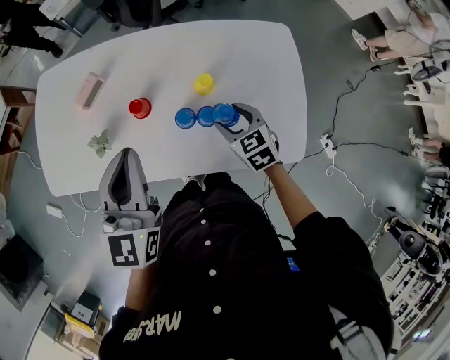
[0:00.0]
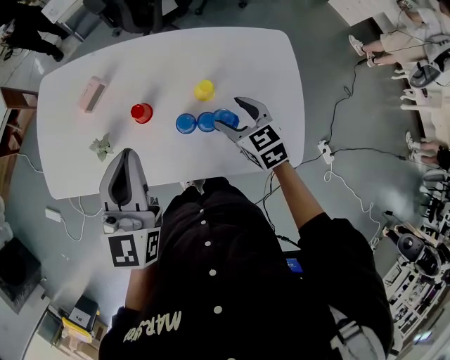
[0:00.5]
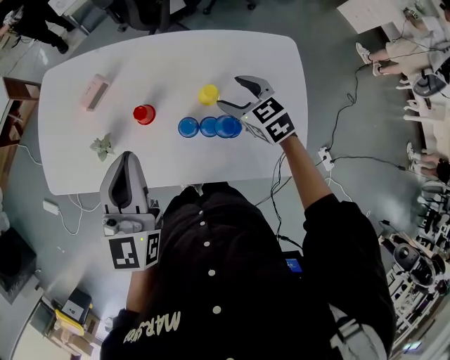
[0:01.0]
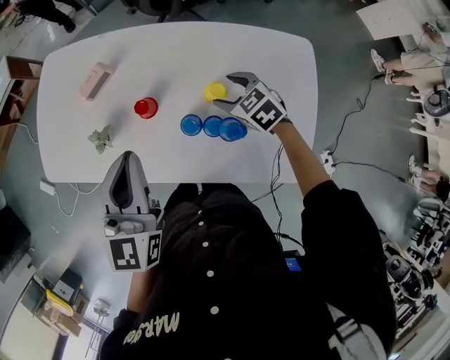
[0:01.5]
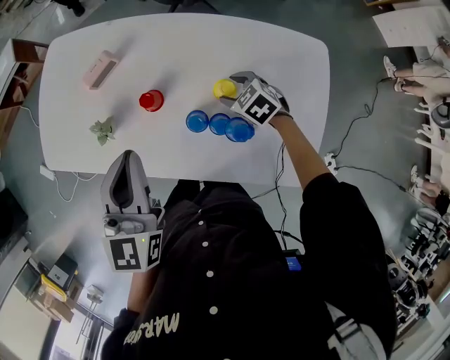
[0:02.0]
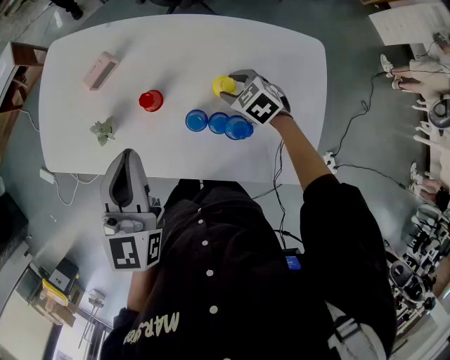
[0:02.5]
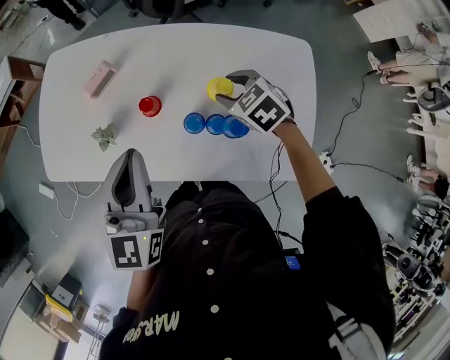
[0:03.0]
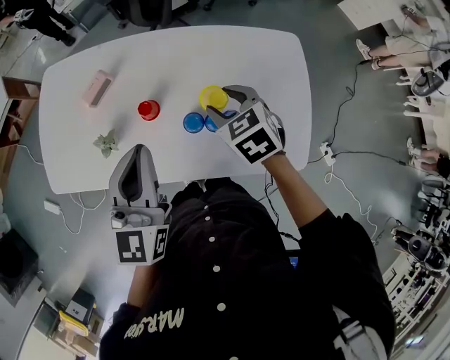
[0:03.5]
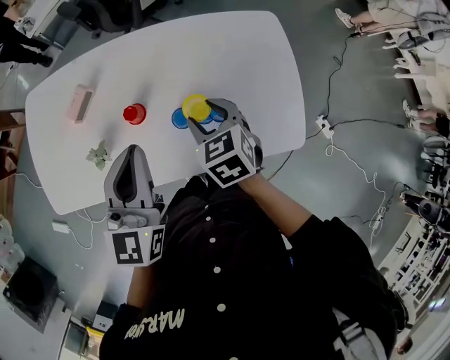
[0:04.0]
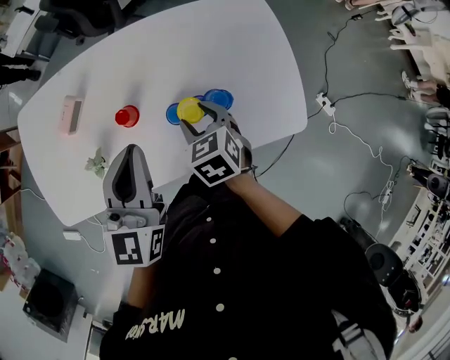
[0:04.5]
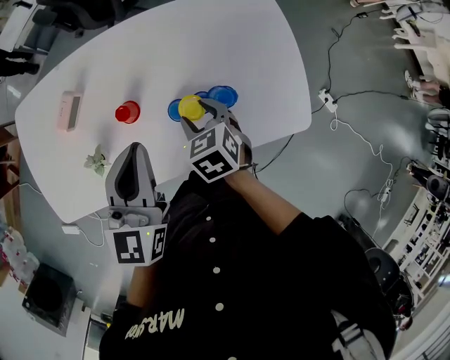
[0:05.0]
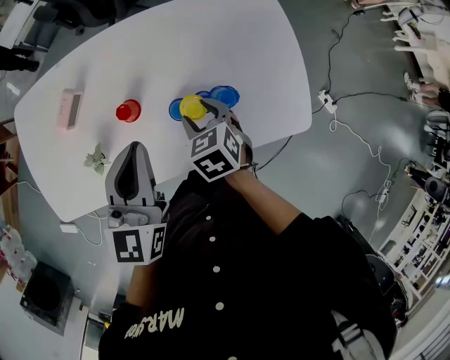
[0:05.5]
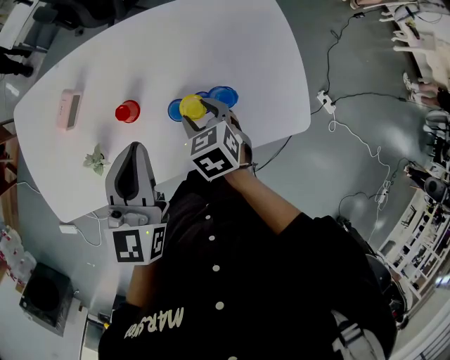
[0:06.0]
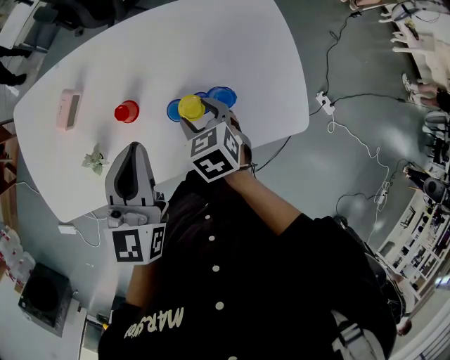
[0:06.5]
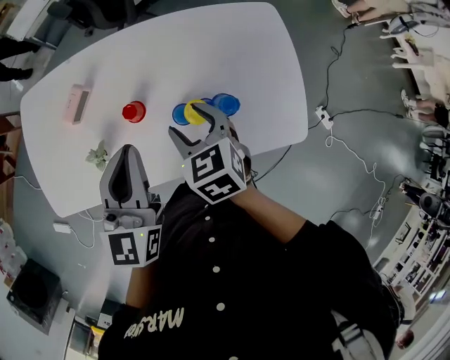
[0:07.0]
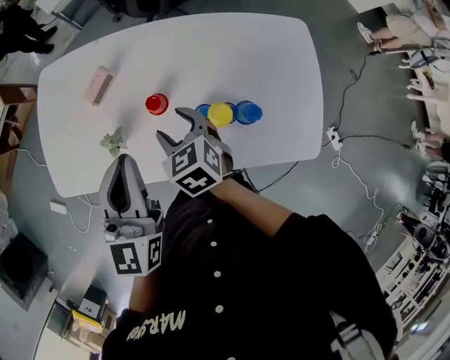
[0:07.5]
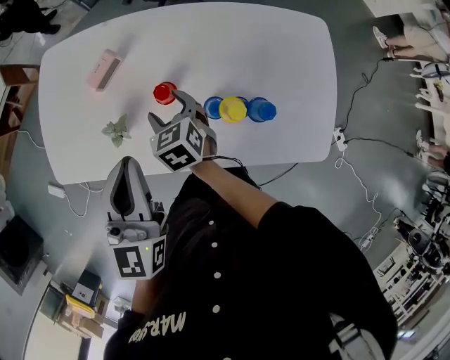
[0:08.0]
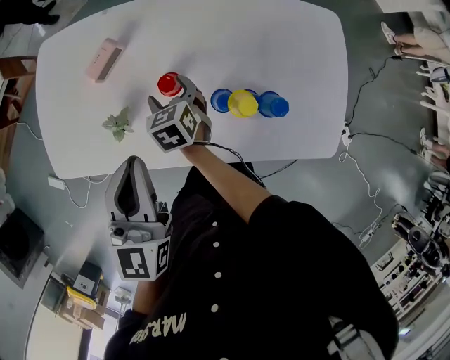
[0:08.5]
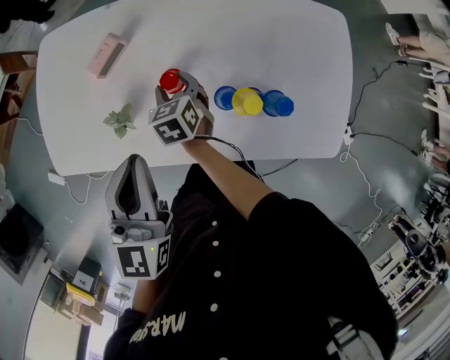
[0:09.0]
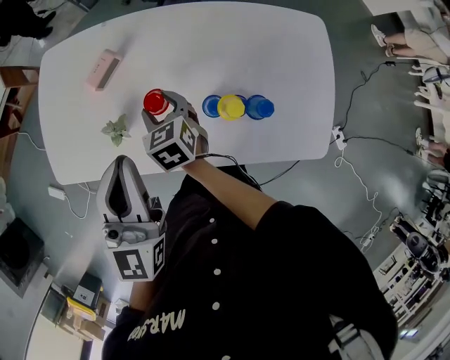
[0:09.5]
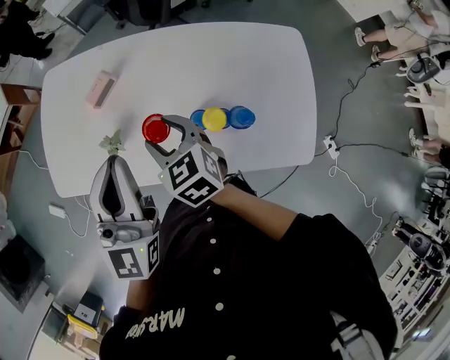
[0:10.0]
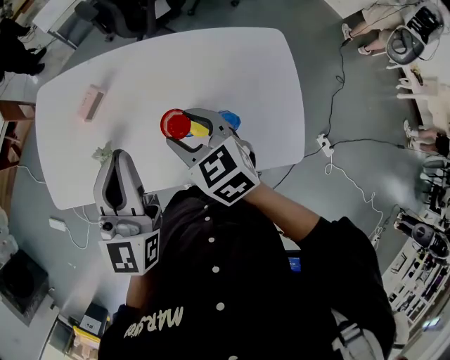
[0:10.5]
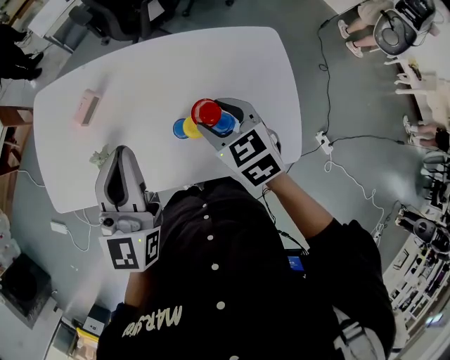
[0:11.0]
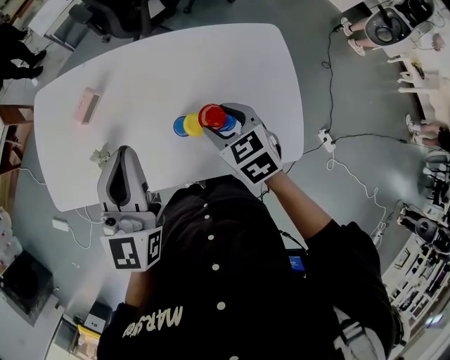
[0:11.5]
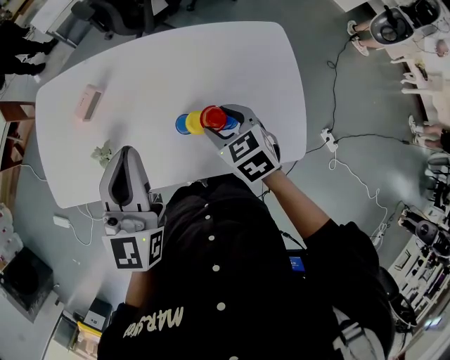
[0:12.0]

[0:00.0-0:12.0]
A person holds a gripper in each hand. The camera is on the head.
0:00.0 to 0:02.0: The right gripper shifts some 15 cm forward and downward, and rotates roughly 30 degrees.
0:02.0 to 0:04.0: The right gripper goes about 15 cm upward, and changes its angle by roughly 40 degrees; the left gripper rotates roughly 20 degrees.
0:04.0 to 0:06.0: The right gripper shifts some 5 cm downward.
0:06.0 to 0:08.0: The left gripper is displaced to the left by some 10 cm, while the right gripper moves to the left, approximately 20 cm.
0:08.0 to 0:10.0: The left gripper heads upward, covering approximately 5 cm, while the right gripper shifts about 15 cm upward and backward.
0:10.0 to 0:12.0: The right gripper shifts approximately 20 cm to the right. Meanwhile the left gripper heads to the right, covering roughly 5 cm.

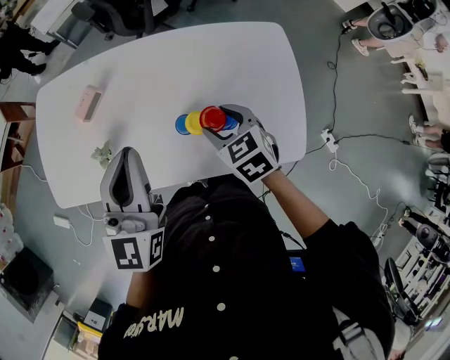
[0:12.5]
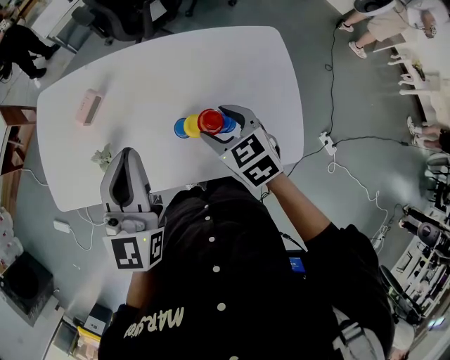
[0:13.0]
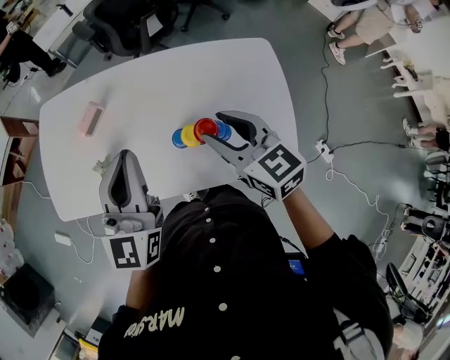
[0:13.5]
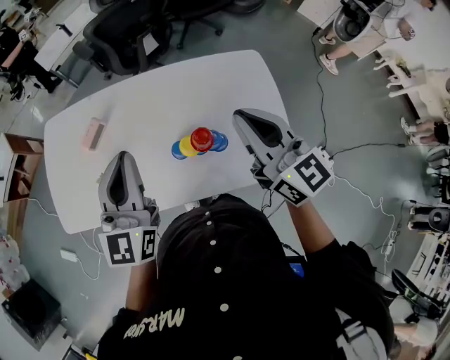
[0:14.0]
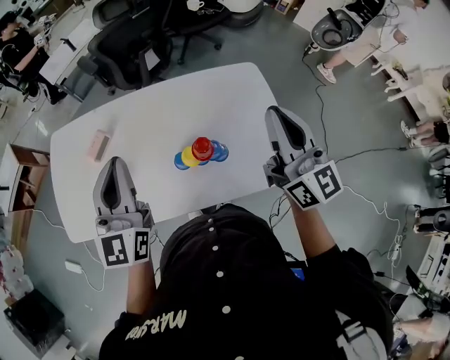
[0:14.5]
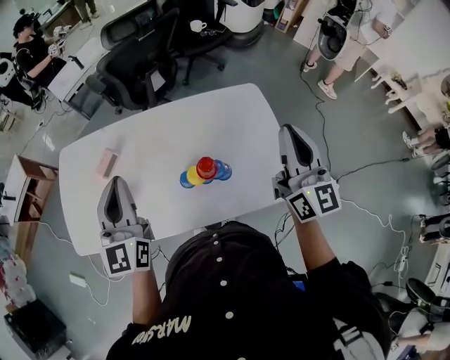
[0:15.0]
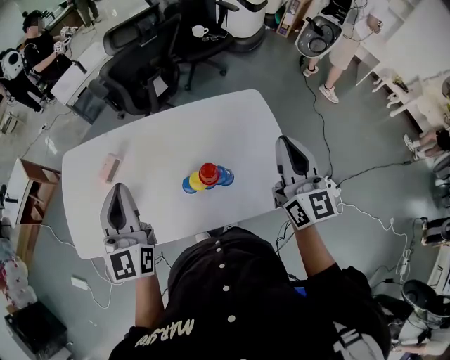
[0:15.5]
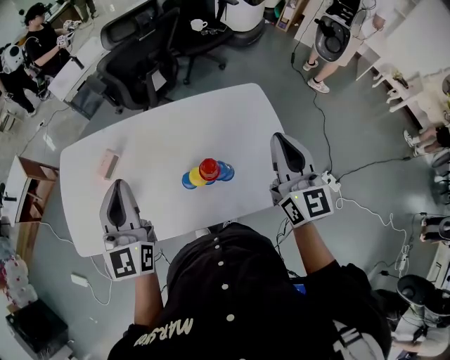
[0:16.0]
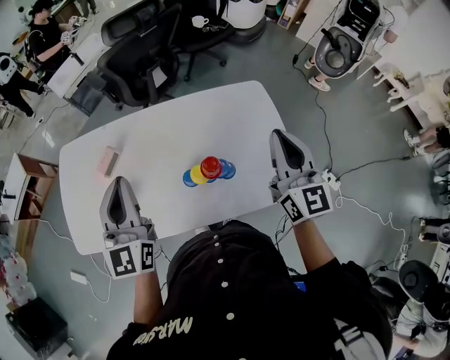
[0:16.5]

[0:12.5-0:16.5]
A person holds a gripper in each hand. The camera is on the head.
0:12.5 to 0:14.5: The right gripper goes some 30 cm upward and to the right, angles its fingers upward, by roughly 60 degrees, and closes up.
0:14.5 to 0:16.5: The grippers move only a little.

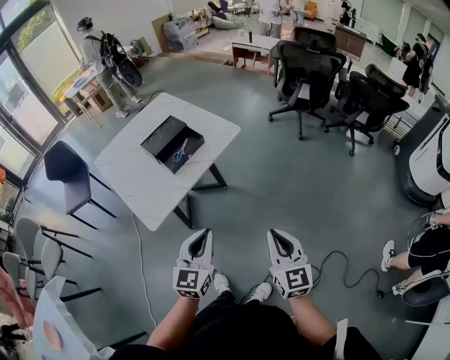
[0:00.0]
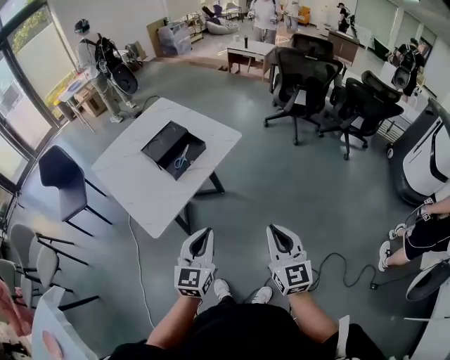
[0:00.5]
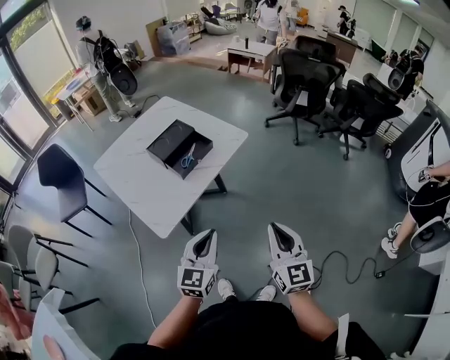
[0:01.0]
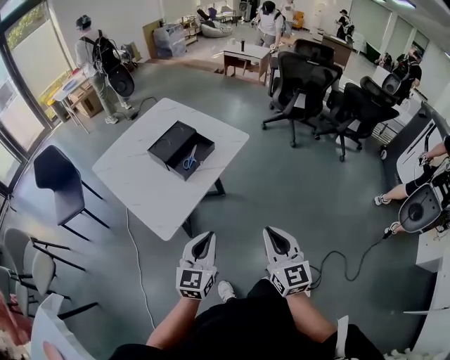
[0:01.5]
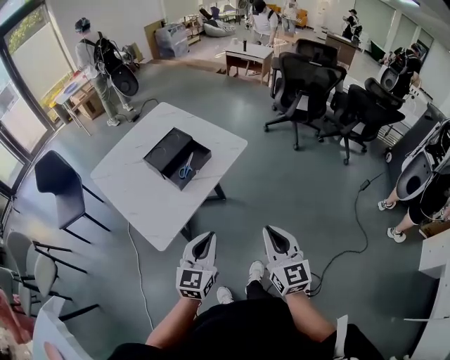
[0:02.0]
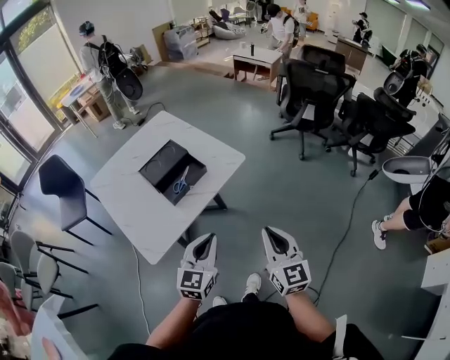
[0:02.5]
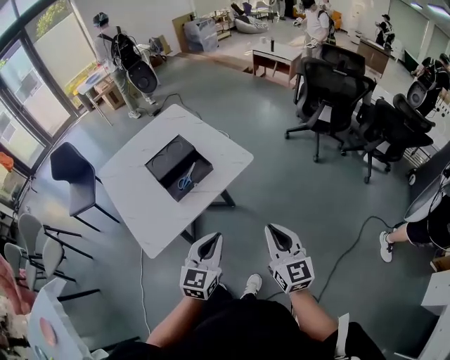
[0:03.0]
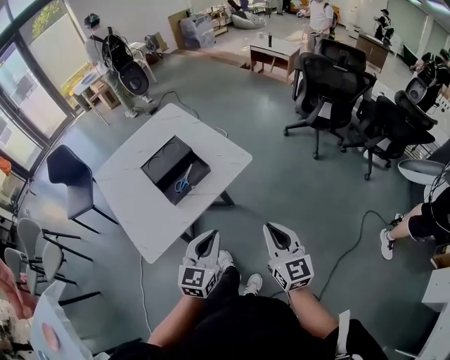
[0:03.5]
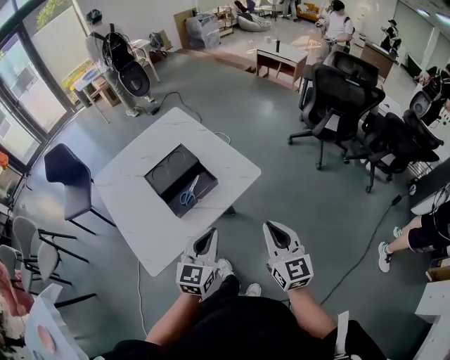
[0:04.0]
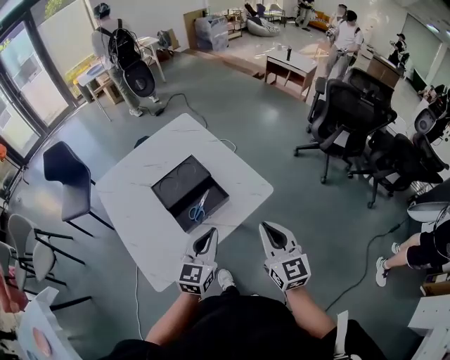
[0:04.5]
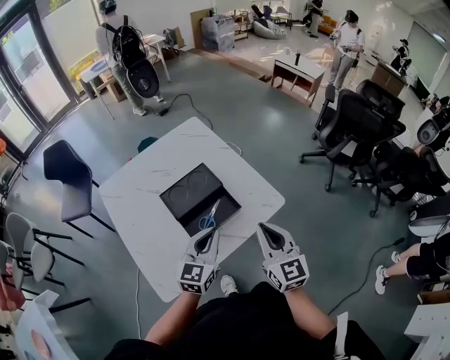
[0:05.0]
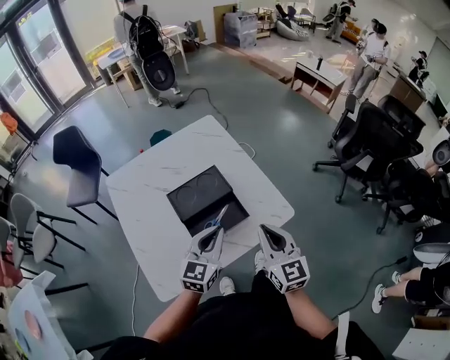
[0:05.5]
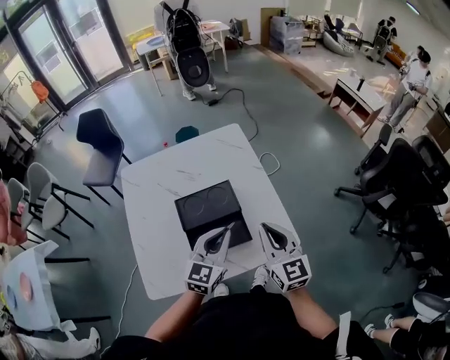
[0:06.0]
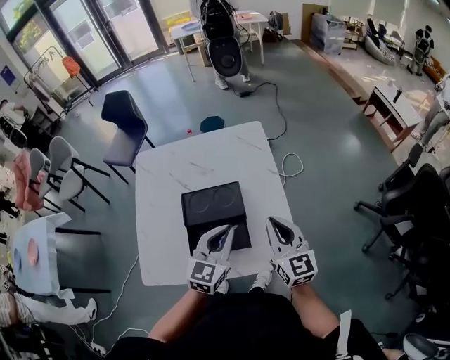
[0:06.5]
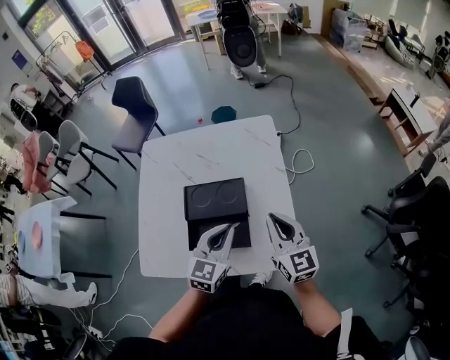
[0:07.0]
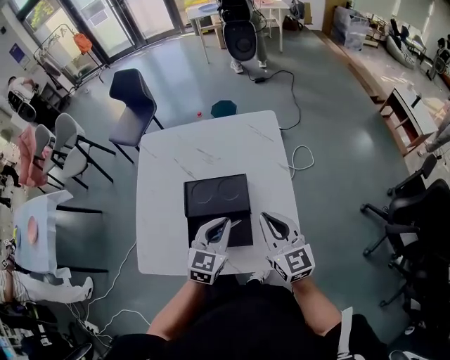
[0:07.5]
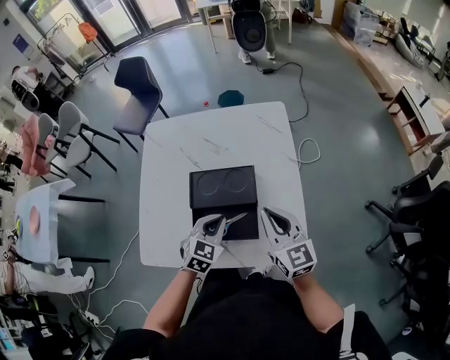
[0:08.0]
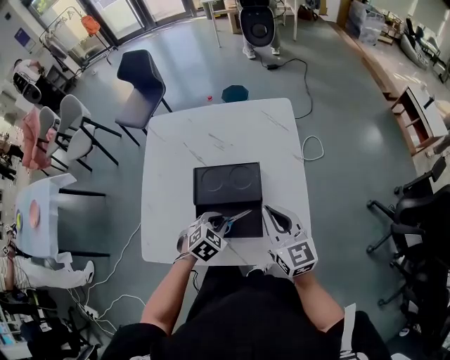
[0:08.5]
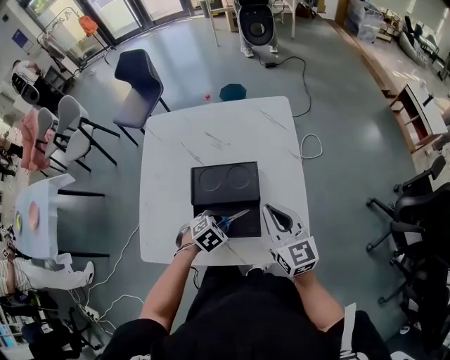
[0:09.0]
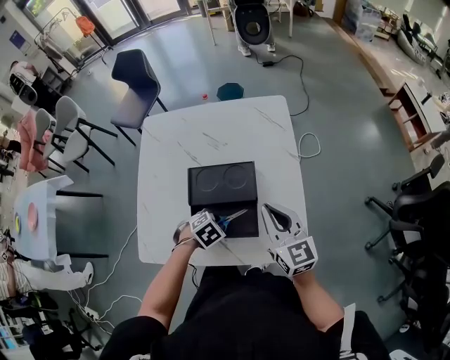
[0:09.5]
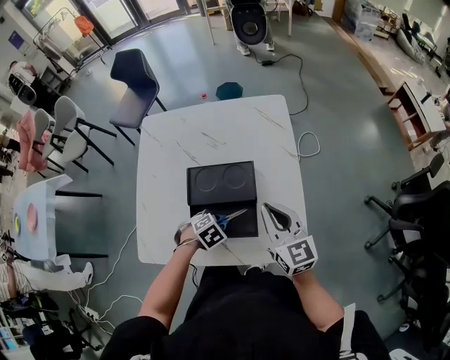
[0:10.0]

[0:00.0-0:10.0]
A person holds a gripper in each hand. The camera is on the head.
0:00.0 to 0:02.0: The two grippers go roughly 10 cm to the left and forward.
0:02.0 to 0:04.0: Both grippers move forward, roughly 20 cm.
0:04.0 to 0:06.0: The two grippers go approximately 25 cm forward. The right gripper swivels some 30 degrees.
0:06.0 to 0:08.0: The left gripper is displaced downward by approximately 10 cm, and turns by some 30 degrees. The right gripper heads forward, covering about 5 cm, and swivels about 20 degrees.
0:08.0 to 0:10.0: The left gripper is displaced downward by about 10 cm, angles its fingers downward, by about 40 degrees, and opens its fingers.

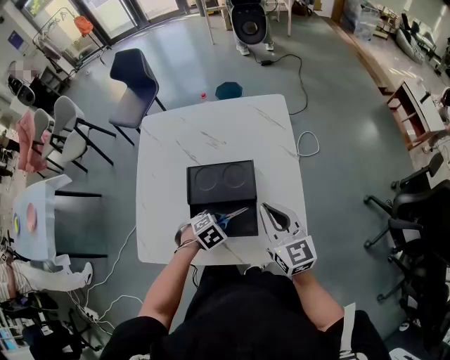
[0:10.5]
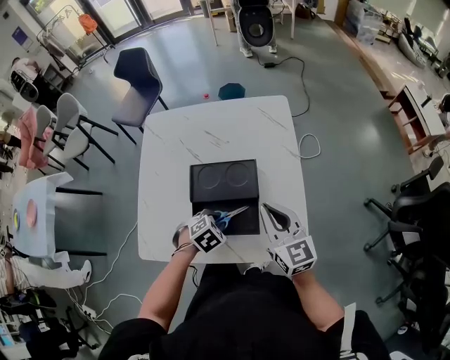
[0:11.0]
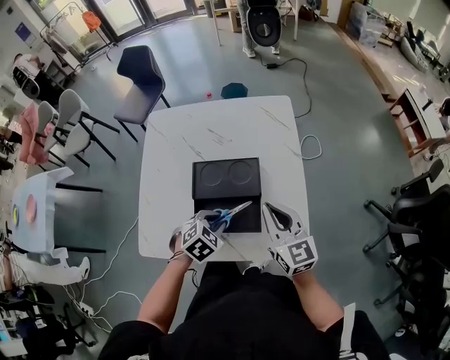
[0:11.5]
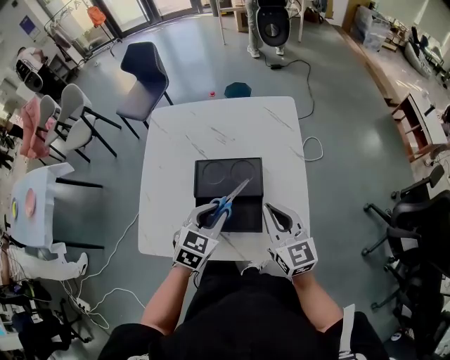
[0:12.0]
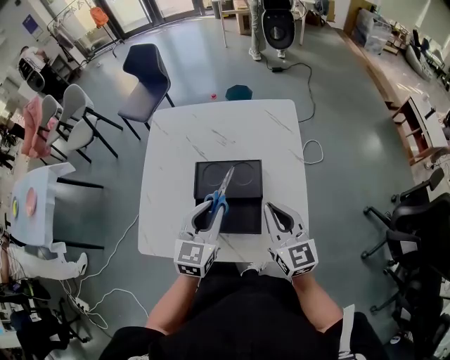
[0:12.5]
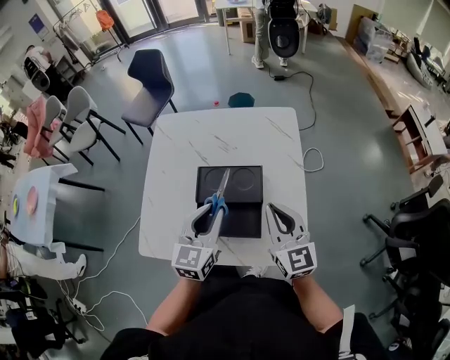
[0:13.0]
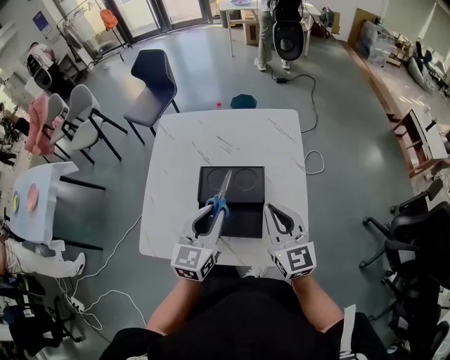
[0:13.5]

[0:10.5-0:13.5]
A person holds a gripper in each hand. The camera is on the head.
0:10.5 to 0:12.0: The left gripper moves upward, roughly 15 cm, and tilts its fingers some 40 degrees upward.
0:12.0 to 0:13.5: The left gripper moves upward, some 10 cm, and rotates some 30 degrees.
